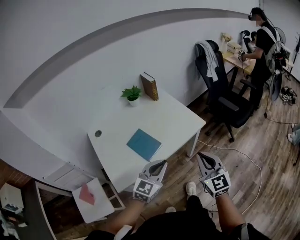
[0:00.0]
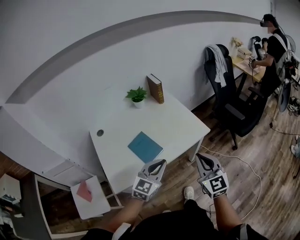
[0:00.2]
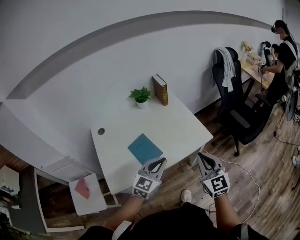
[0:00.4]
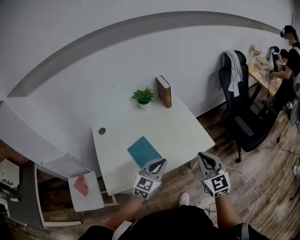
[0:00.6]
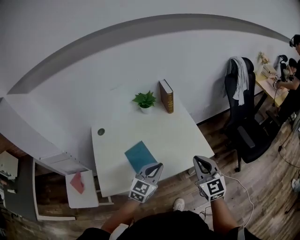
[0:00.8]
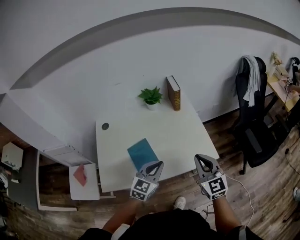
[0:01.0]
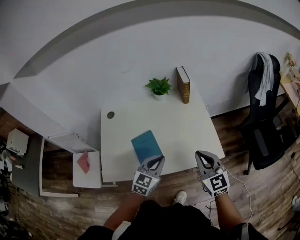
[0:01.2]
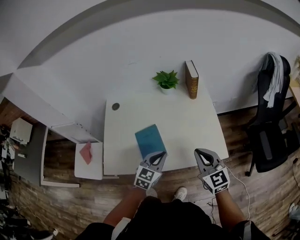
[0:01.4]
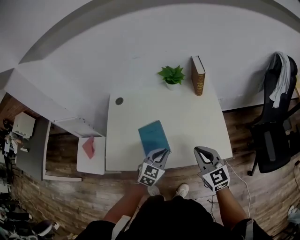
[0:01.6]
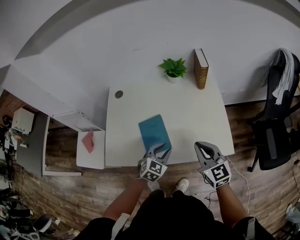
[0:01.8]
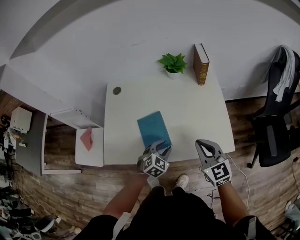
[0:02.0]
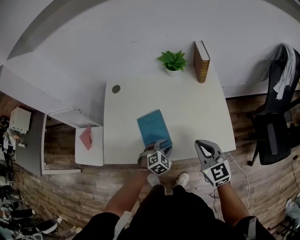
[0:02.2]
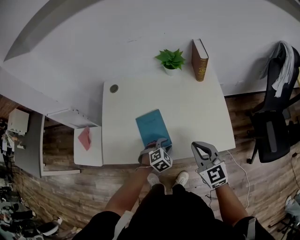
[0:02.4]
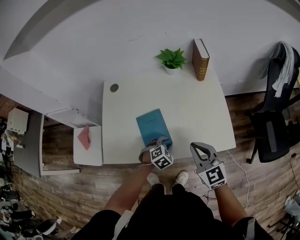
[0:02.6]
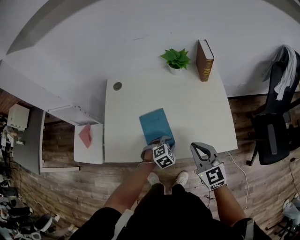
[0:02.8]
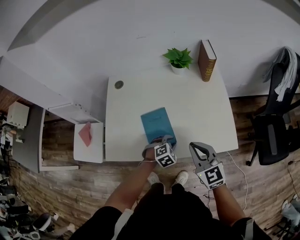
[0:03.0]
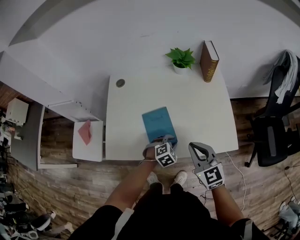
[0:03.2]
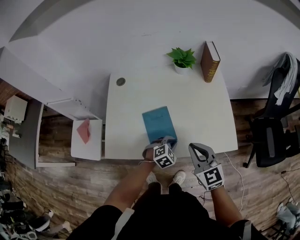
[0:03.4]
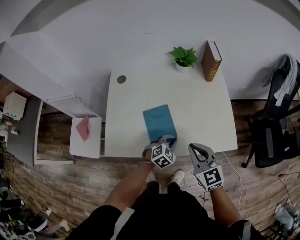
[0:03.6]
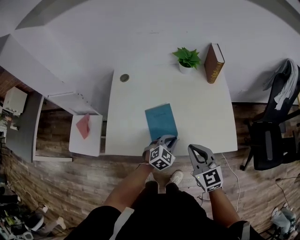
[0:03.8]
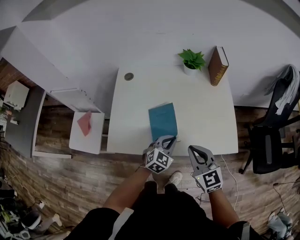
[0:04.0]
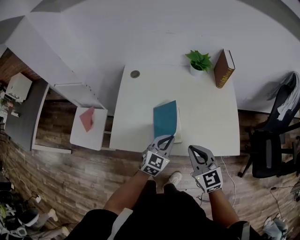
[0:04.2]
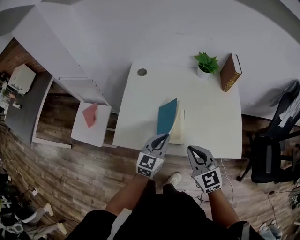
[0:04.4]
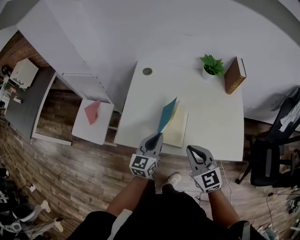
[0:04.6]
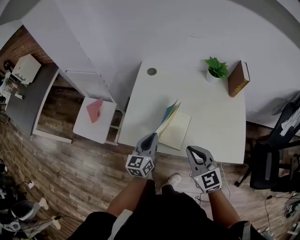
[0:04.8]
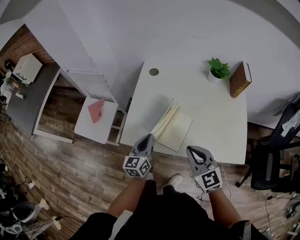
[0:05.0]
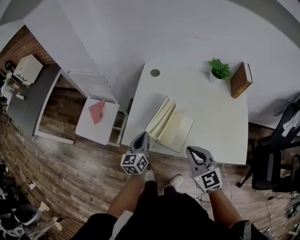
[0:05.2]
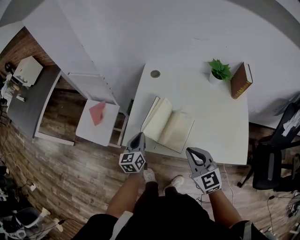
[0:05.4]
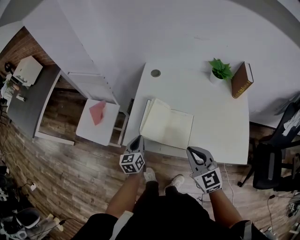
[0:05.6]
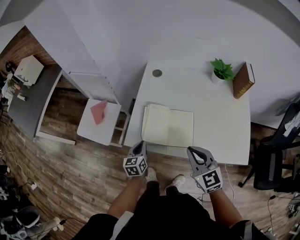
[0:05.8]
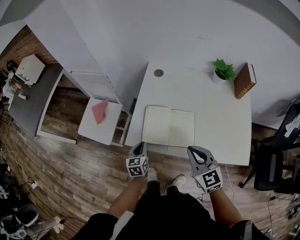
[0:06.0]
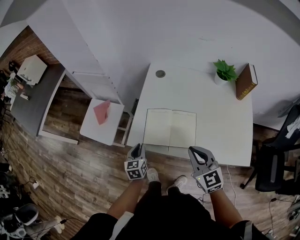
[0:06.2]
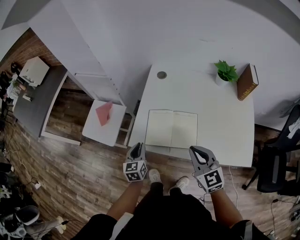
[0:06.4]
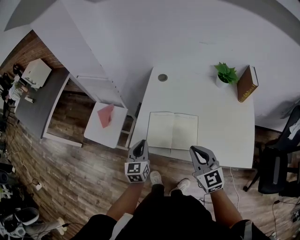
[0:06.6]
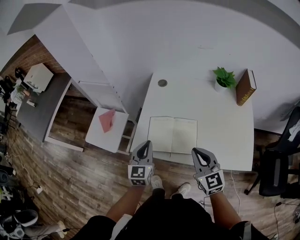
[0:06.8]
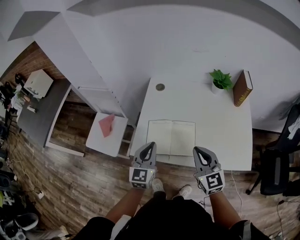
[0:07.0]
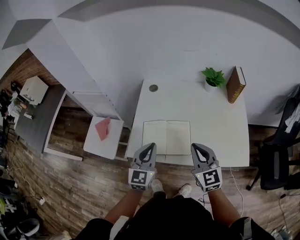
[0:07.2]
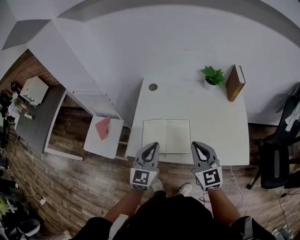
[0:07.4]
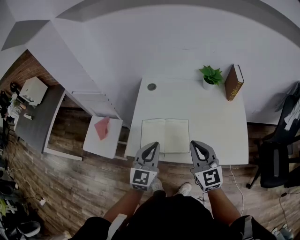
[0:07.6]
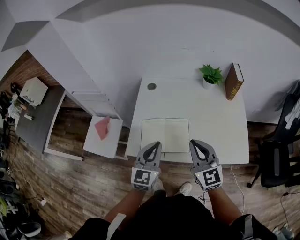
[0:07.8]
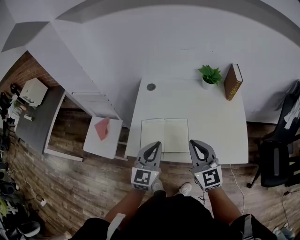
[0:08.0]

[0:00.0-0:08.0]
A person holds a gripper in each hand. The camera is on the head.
0:00.0 to 0:01.6: The left gripper changes place by roughly 25 cm, and rotates some 40 degrees. The right gripper shifts by some 25 cm, and rotates approximately 40 degrees.
0:01.6 to 0:03.2: The right gripper is displaced to the left by approximately 10 cm, while the left gripper goes approximately 15 cm downward, turns by about 40 degrees, and opens its fingers.
0:03.2 to 0:04.8: The left gripper heads to the left and upward, covering about 25 cm, tips its fingers upward by approximately 50 degrees, and closes; the right gripper heads to the left, covering some 15 cm.
0:04.8 to 0:06.4: The left gripper goes about 15 cm to the left and downward, and turns by some 20 degrees.
0:06.4 to 0:08.0: The left gripper travels upward and to the right by some 25 cm, and changes its angle by approximately 30 degrees. The right gripper moves upward, some 5 cm.
